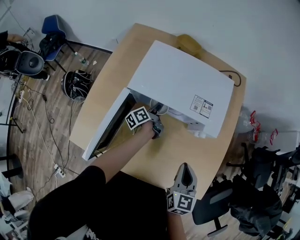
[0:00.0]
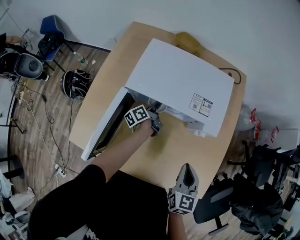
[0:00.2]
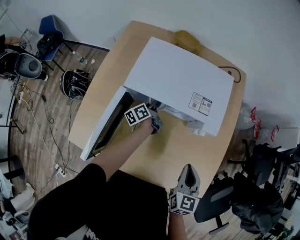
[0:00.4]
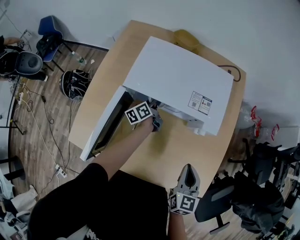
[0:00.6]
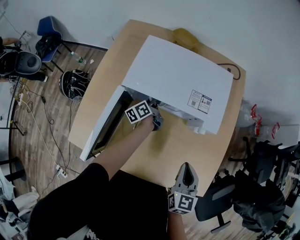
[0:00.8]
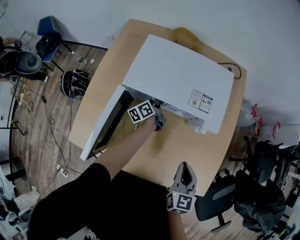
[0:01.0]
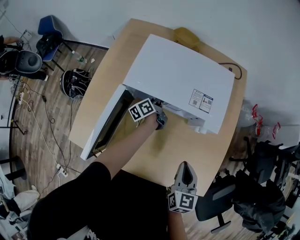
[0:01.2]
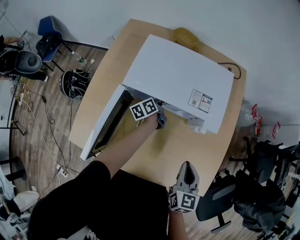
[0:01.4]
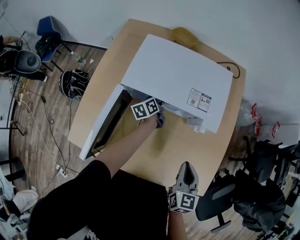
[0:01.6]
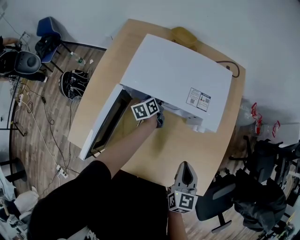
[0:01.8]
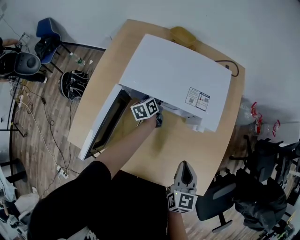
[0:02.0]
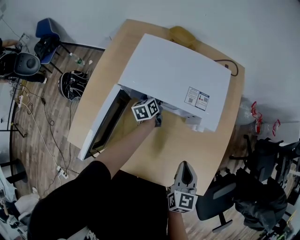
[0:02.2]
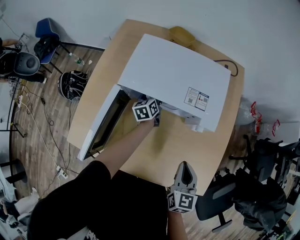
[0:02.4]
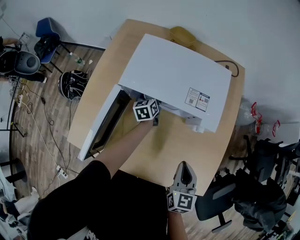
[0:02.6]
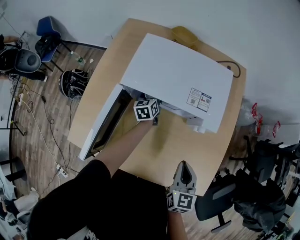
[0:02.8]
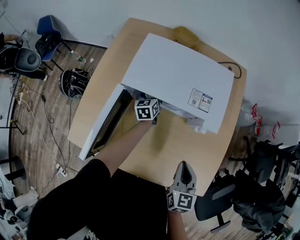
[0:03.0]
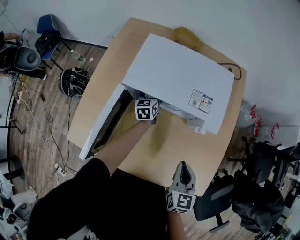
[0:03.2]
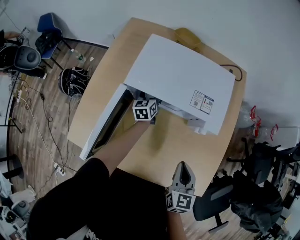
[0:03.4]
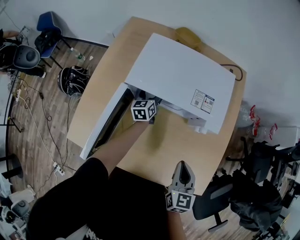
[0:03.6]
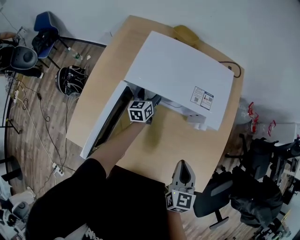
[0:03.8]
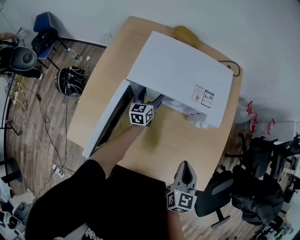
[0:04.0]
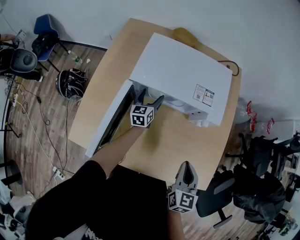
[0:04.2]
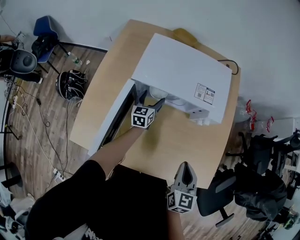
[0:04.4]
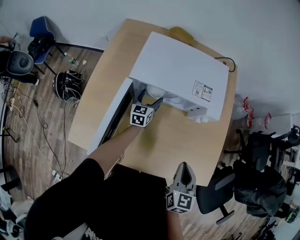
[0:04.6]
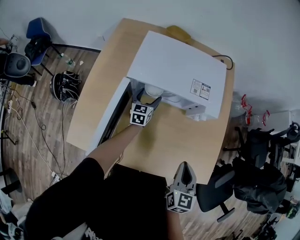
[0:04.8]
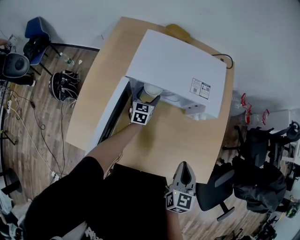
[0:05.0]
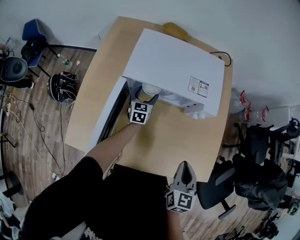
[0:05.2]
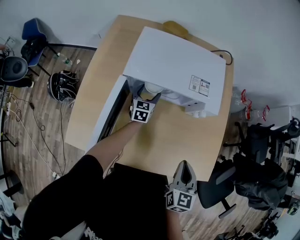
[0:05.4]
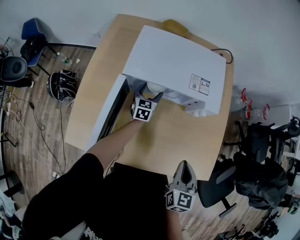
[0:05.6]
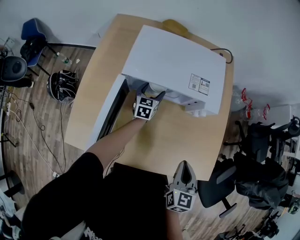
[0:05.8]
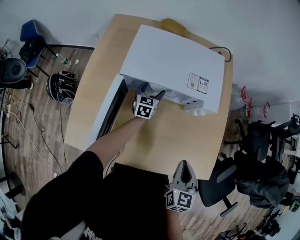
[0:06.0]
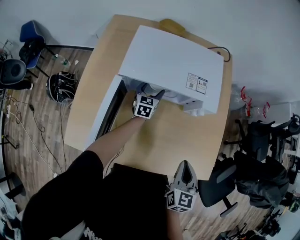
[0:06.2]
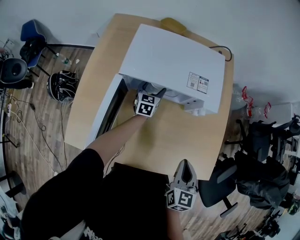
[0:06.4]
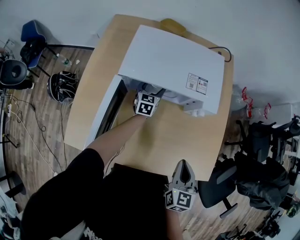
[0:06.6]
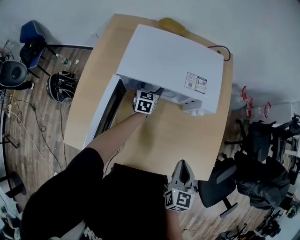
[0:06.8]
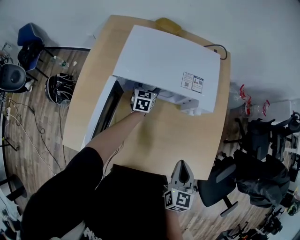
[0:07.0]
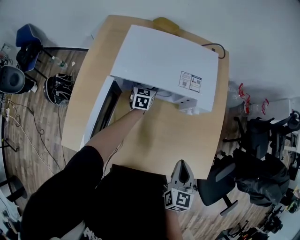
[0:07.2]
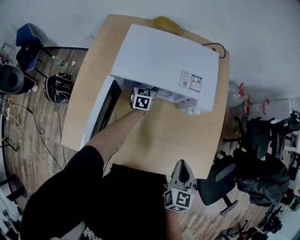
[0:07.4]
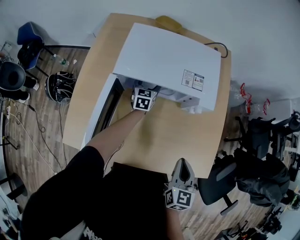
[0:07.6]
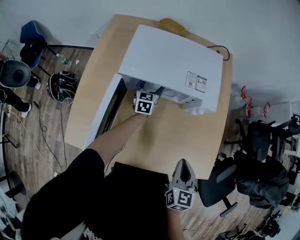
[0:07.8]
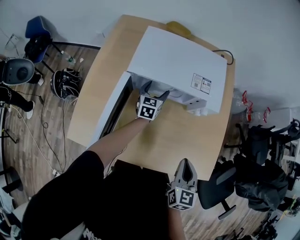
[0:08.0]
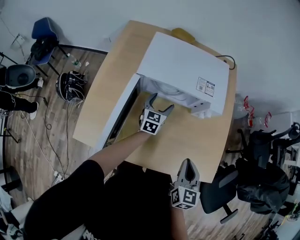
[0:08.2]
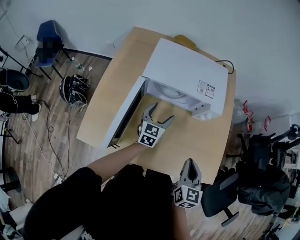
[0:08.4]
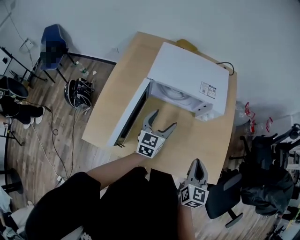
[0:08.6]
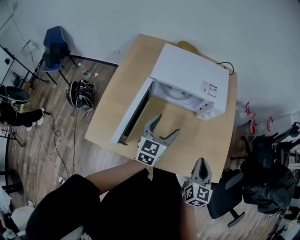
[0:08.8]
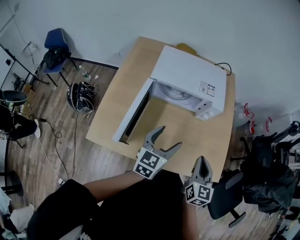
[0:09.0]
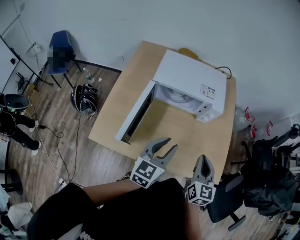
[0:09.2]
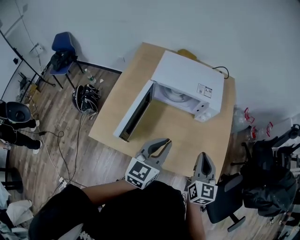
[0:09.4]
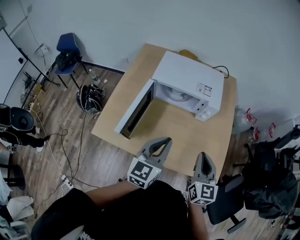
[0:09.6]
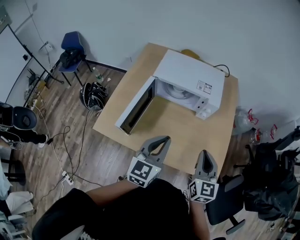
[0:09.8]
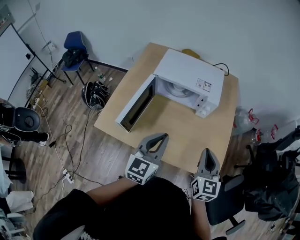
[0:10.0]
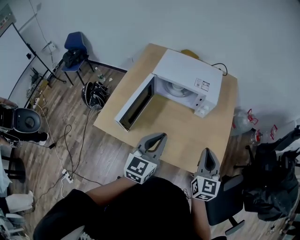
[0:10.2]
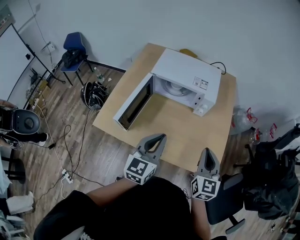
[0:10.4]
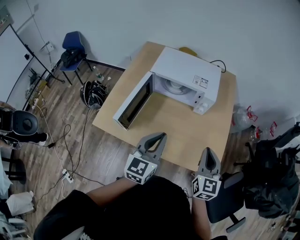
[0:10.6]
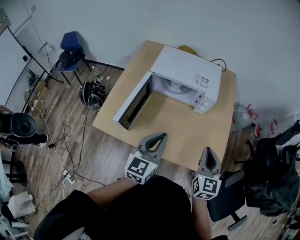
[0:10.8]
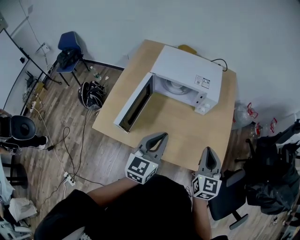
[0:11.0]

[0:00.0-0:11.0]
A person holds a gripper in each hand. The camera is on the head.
0:00.0 to 0:01.6: The left gripper rotates about 30 degrees.
0:01.6 to 0:03.2: The left gripper changes its angle by roughly 30 degrees, and opens.
0:03.2 to 0:04.8: The grippers both shift backward by some 5 cm. The left gripper swivels about 20 degrees.
0:04.8 to 0:06.2: The grippers move only a little.
0:06.2 to 0:07.8: The grippers move only a little.
0:07.8 to 0:09.4: The left gripper travels backward and upward by some 40 cm, changes its angle by roughly 20 degrees, and closes its fingers. Meanwhile the right gripper heads upward, covering roughly 10 cm.

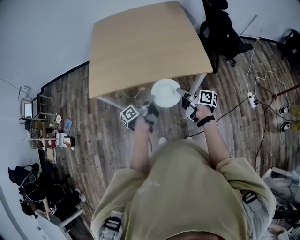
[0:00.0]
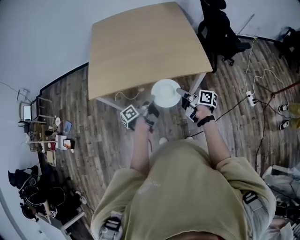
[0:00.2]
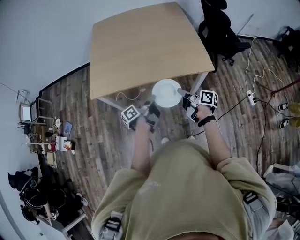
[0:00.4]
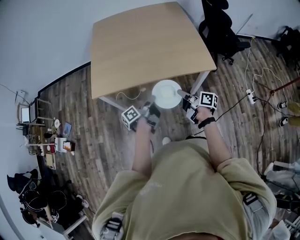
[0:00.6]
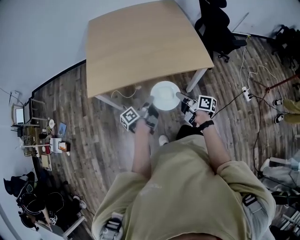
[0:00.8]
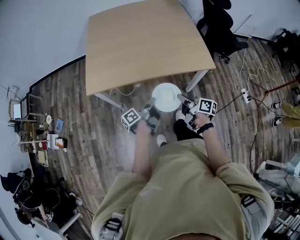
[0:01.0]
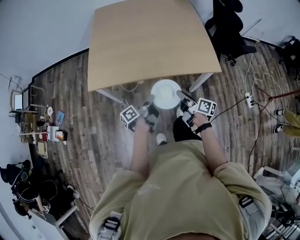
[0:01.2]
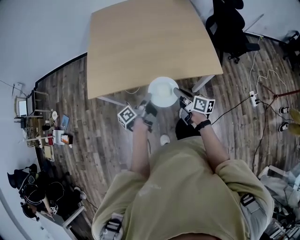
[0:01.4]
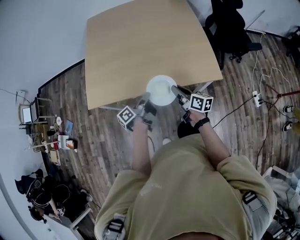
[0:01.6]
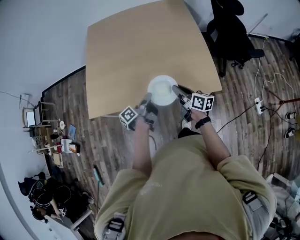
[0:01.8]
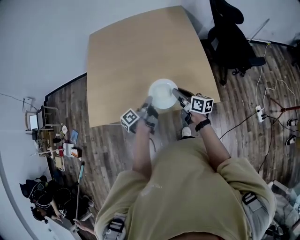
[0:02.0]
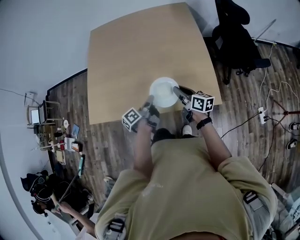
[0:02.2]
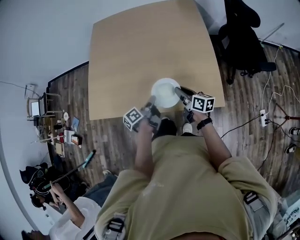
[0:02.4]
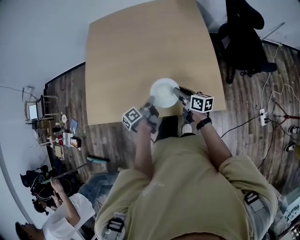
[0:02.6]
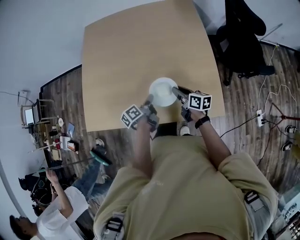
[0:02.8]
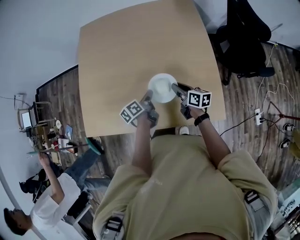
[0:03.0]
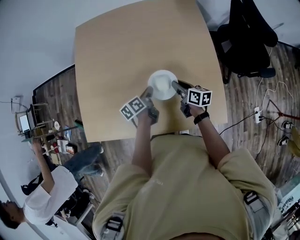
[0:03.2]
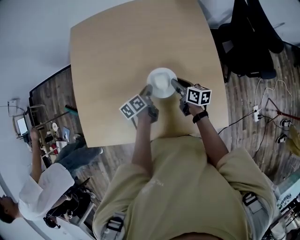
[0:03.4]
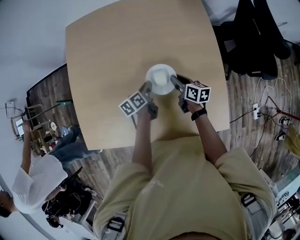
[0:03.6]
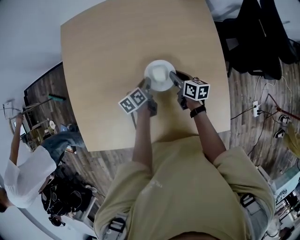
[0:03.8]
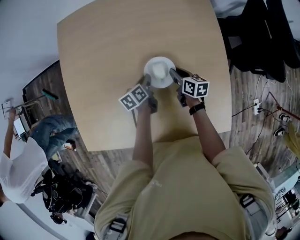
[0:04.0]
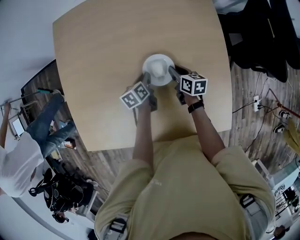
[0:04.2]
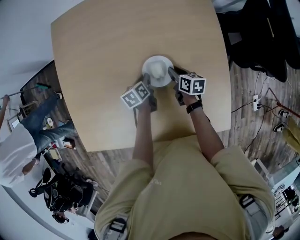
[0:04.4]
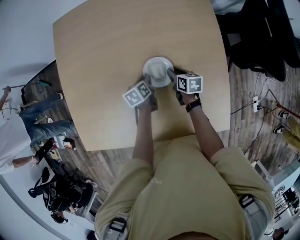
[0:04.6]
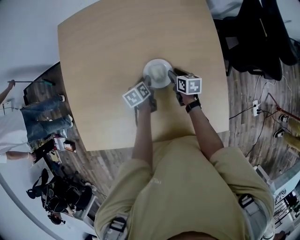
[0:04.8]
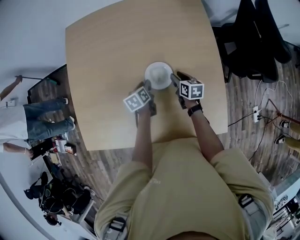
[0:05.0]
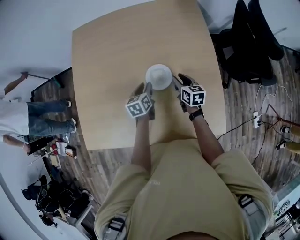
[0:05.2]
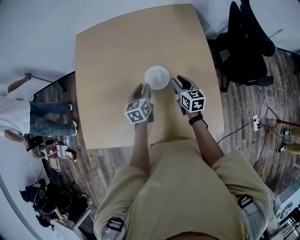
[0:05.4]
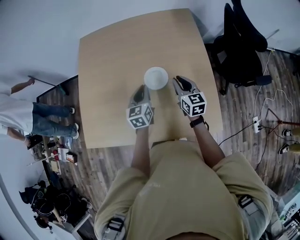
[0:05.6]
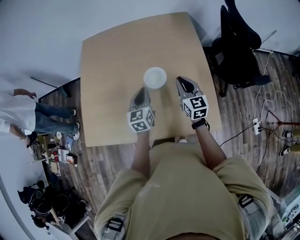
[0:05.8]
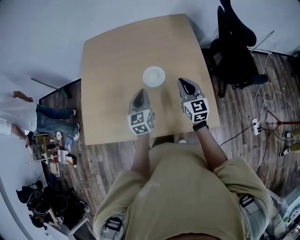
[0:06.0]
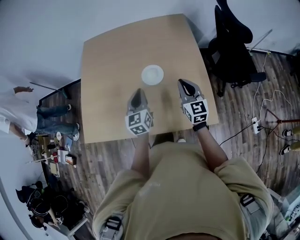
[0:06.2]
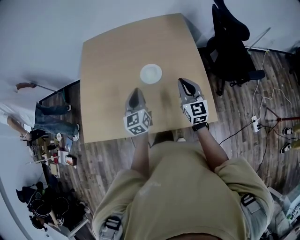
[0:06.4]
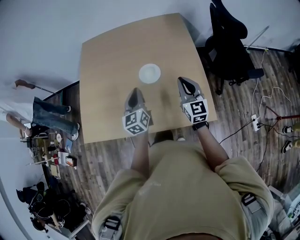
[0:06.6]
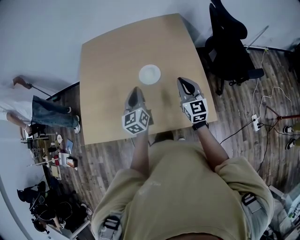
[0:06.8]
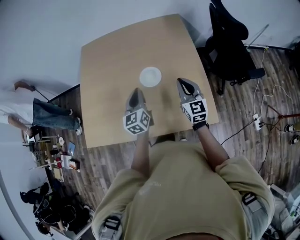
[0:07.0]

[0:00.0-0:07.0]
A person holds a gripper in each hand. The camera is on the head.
0:00.0 to 0:01.4: Both grippers move to the left and forward, roughly 10 cm.
0:01.4 to 0:02.8: The two grippers go about 30 cm forward and to the right. The left gripper swivels approximately 20 degrees.
0:02.8 to 0:04.2: The left gripper moves forward, approximately 30 cm, and changes its angle by roughly 30 degrees. Meanwhile the right gripper heads forward and downward, covering roughly 30 cm.
0:04.2 to 0:05.6: Both grippers move upward and backward, roughly 25 cm. The right gripper turns by approximately 40 degrees; the left gripper rotates approximately 40 degrees.
0:05.6 to 0:07.0: Both grippers move backward and upward, roughly 10 cm.

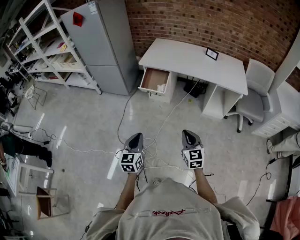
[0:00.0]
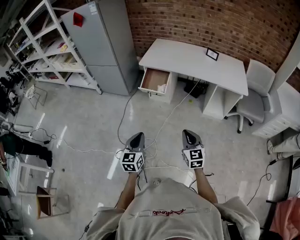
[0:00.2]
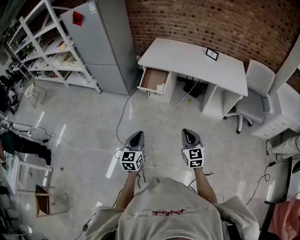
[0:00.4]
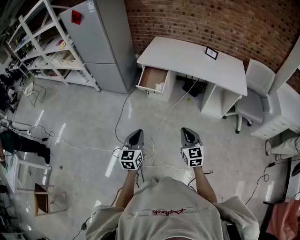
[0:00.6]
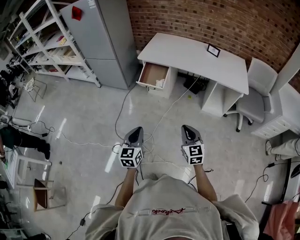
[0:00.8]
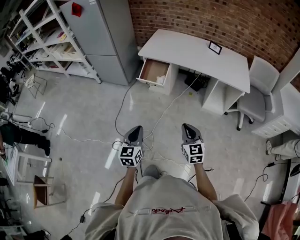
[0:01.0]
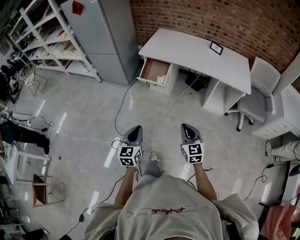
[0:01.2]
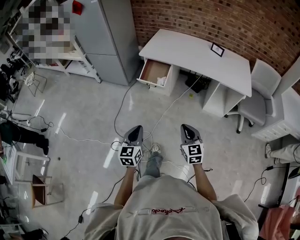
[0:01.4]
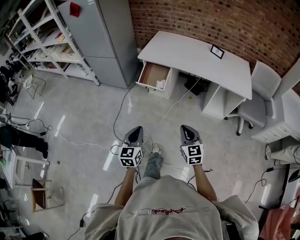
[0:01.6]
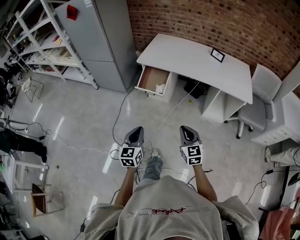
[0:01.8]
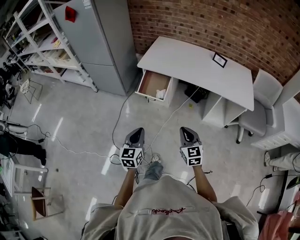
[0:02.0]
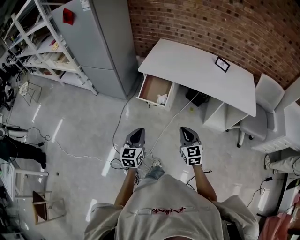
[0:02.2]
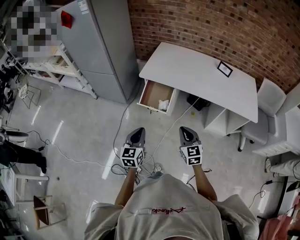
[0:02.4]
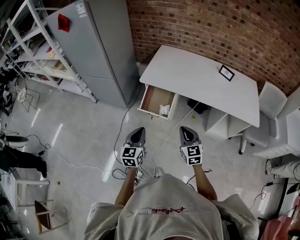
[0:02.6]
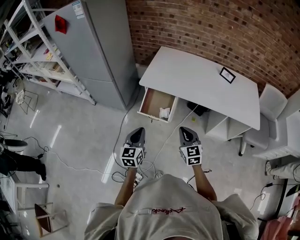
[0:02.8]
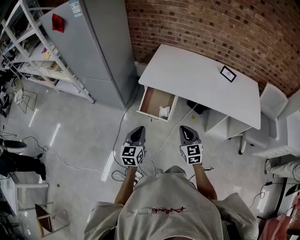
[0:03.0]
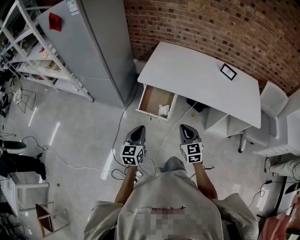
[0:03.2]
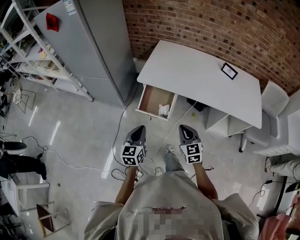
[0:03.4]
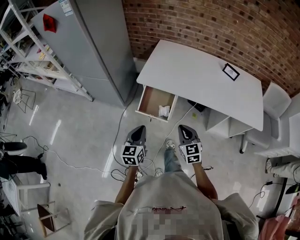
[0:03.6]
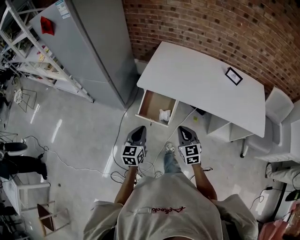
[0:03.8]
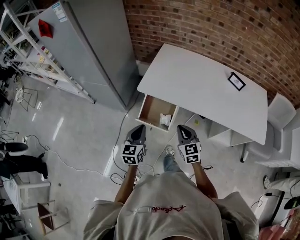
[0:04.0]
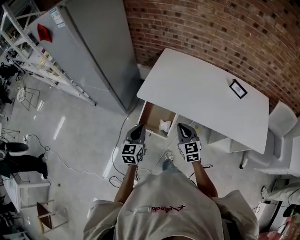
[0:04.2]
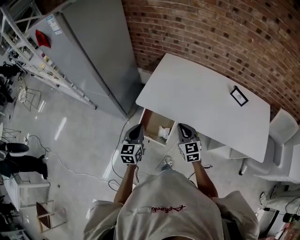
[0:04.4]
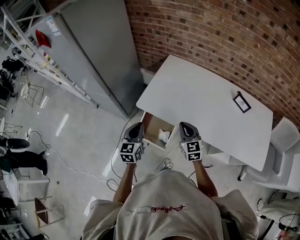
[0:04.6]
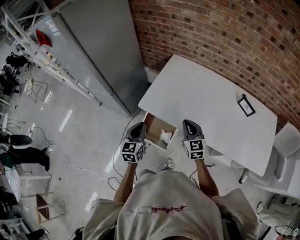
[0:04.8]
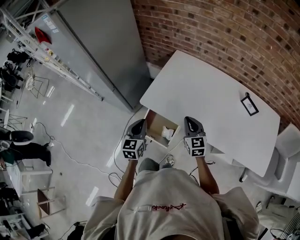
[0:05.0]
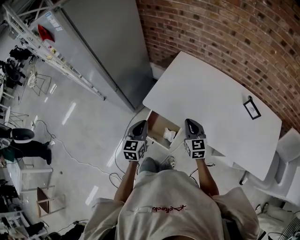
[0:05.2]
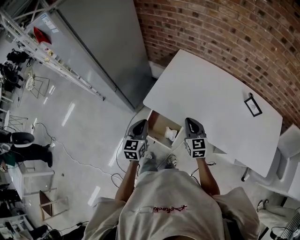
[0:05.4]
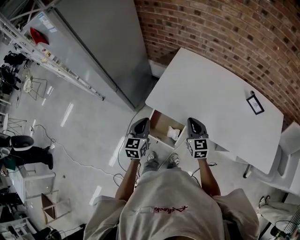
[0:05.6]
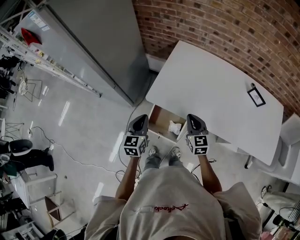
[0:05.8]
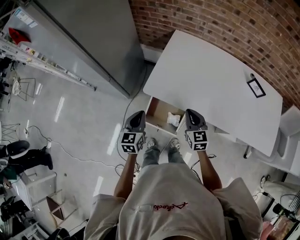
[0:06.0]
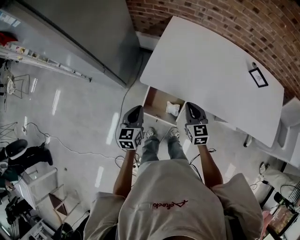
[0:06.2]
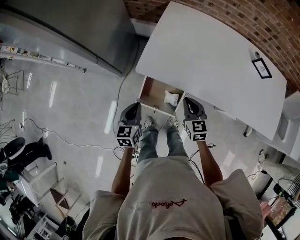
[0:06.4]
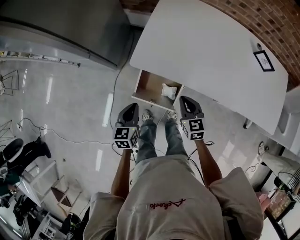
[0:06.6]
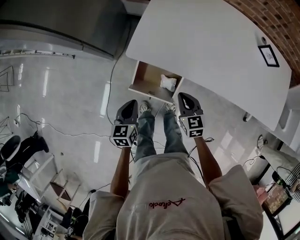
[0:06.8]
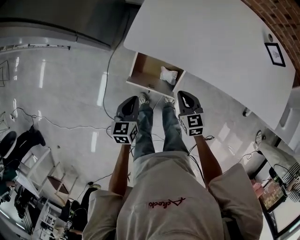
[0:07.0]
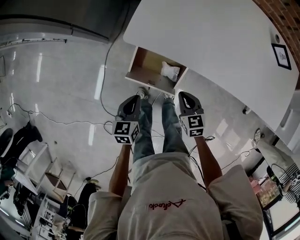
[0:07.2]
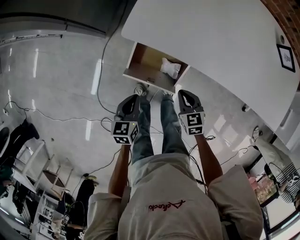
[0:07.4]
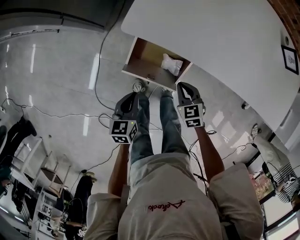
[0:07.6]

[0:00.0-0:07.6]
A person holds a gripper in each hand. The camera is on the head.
0:00.0 to 0:01.6: The two grippers go about 5 cm forward.
0:01.6 to 0:03.0: Both grippers move forward, about 30 cm.
0:03.0 to 0:04.6: The grippers both shift forward by about 25 cm.
0:04.6 to 0:06.0: The right gripper moves to the left and downward, about 10 cm, while the left gripper heads to the left, downward and forward, covering approximately 10 cm.
0:06.0 to 0:07.6: Both grippers travel together downward, approximately 25 cm. The left gripper rotates approximately 20 degrees. The right gripper rotates about 30 degrees.
